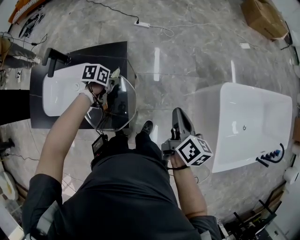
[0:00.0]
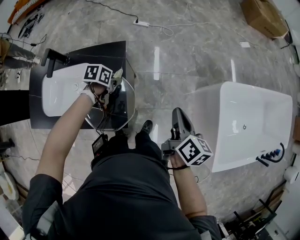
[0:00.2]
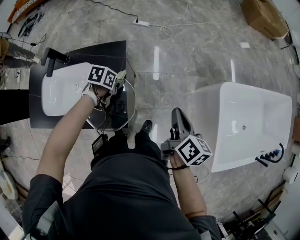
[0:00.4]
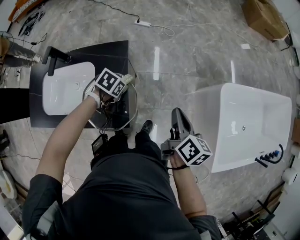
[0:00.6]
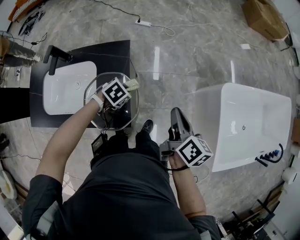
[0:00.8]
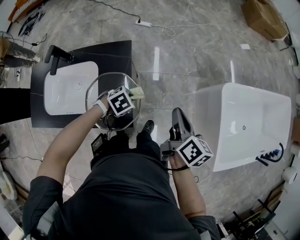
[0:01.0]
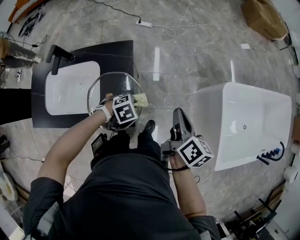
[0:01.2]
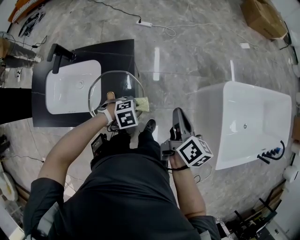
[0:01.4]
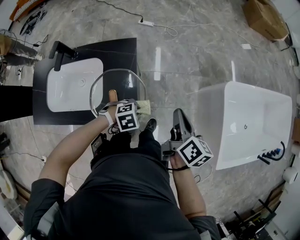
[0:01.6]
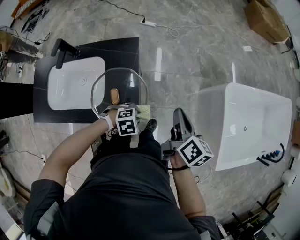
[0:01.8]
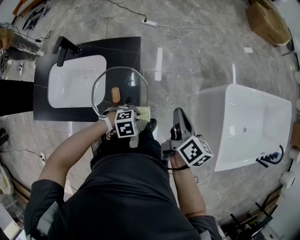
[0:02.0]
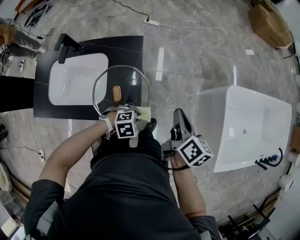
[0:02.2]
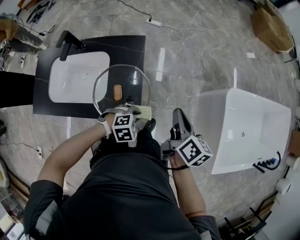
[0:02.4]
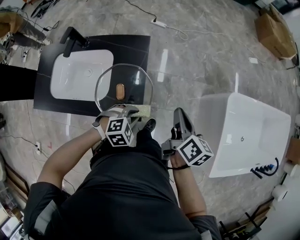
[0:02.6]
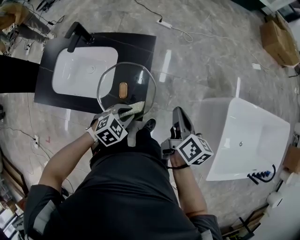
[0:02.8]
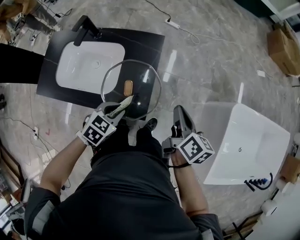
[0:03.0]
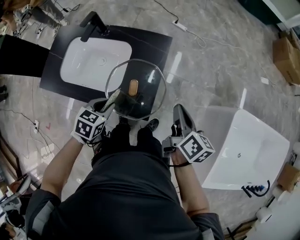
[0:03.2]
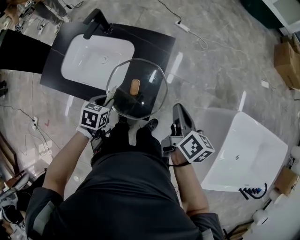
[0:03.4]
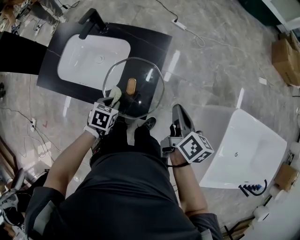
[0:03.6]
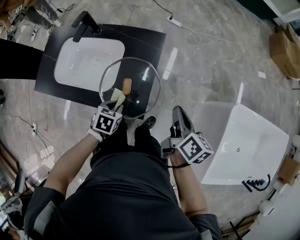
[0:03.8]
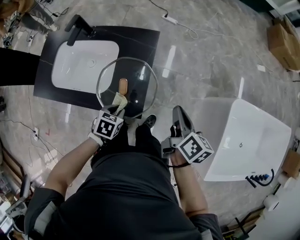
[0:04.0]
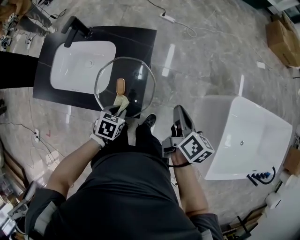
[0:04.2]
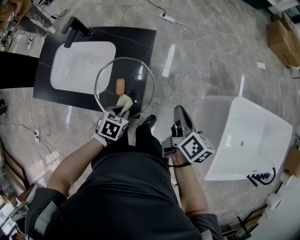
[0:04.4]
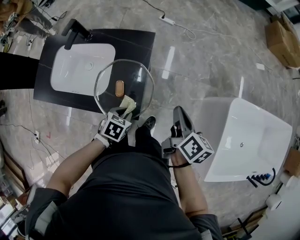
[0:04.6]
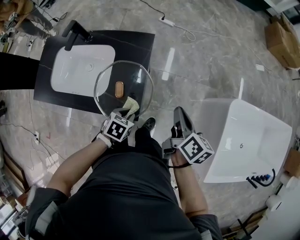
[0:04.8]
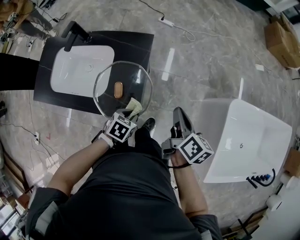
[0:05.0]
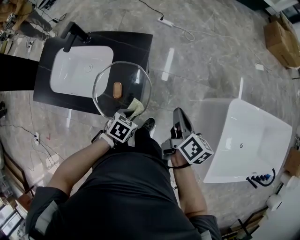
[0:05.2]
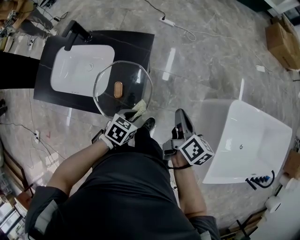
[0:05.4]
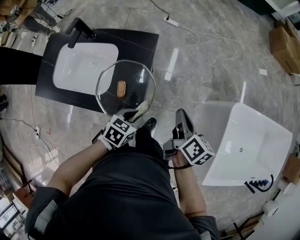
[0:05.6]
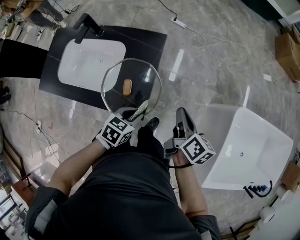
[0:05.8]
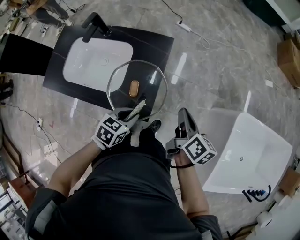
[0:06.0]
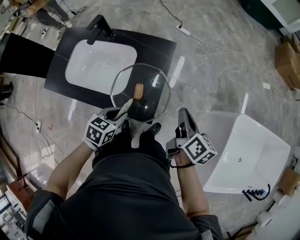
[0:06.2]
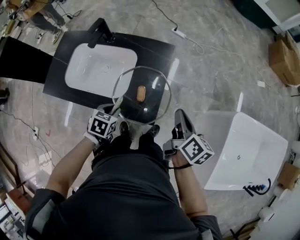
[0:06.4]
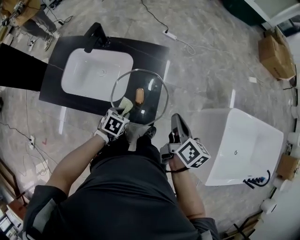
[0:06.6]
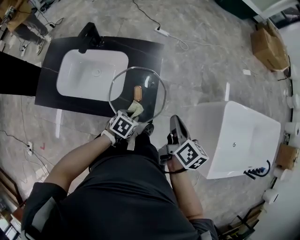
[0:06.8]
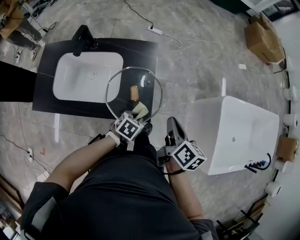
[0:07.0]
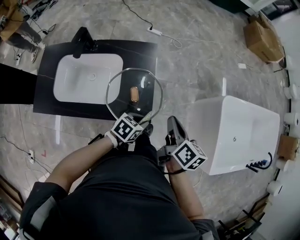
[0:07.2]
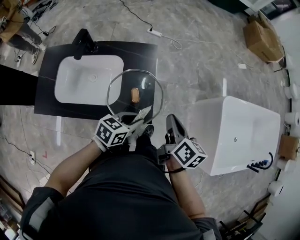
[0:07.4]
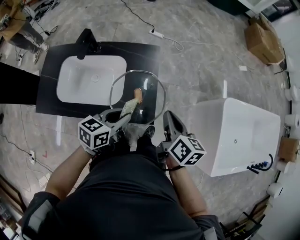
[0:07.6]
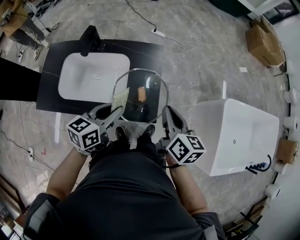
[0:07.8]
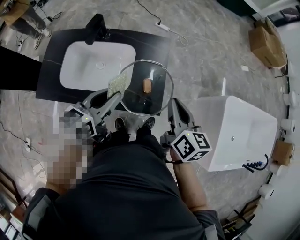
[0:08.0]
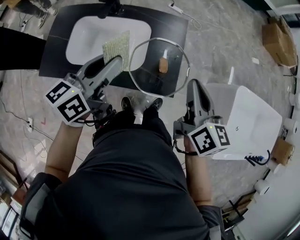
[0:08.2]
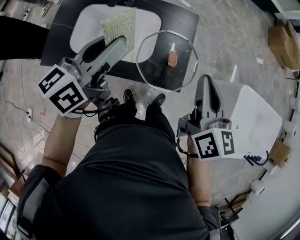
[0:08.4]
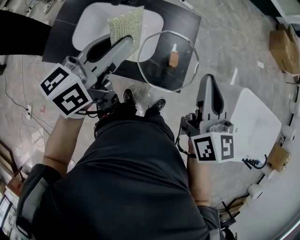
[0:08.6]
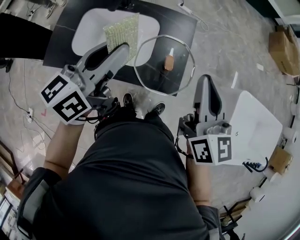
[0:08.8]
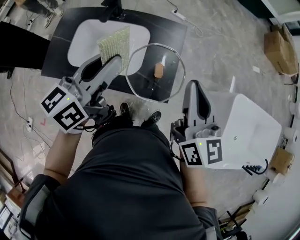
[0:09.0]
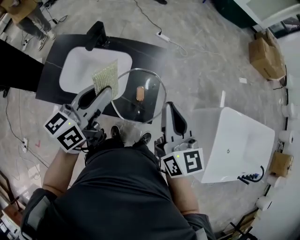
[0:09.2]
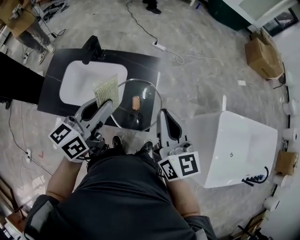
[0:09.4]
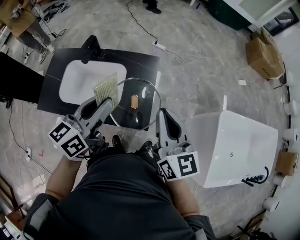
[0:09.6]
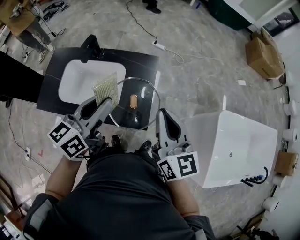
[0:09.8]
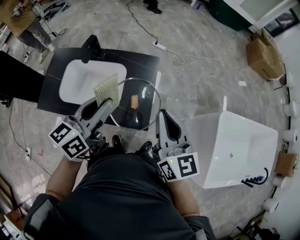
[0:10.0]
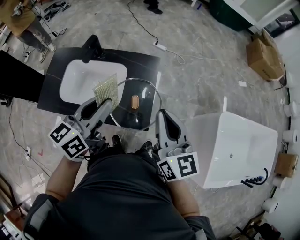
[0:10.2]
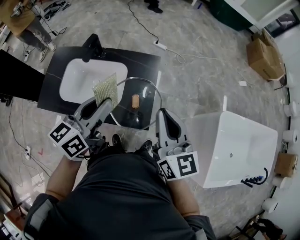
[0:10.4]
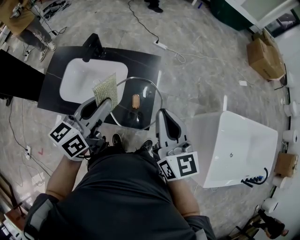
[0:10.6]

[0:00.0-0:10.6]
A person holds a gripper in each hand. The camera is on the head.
0:00.0 to 0:01.6: The left gripper shifts roughly 20 cm to the right and backward, and rolls clockwise, seen from behind, by about 70 degrees.
0:01.6 to 0:03.0: The right gripper moves some 5 cm, while the left gripper shifts by roughly 15 cm, and turns by about 50 degrees.
0:03.0 to 0:04.6: The left gripper is displaced downward by some 10 cm, and moves approximately 10 cm to the left and comes back.
0:04.6 to 0:06.0: The left gripper is displaced upward by some 5 cm.
0:06.0 to 0:07.6: The right gripper shifts by some 15 cm. Meanwhile the left gripper moves upward, some 10 cm, and rotates roughly 20 degrees.
0:07.6 to 0:09.0: The two grippers go some 20 cm upward and to the left. The right gripper rotates about 40 degrees, while the left gripper rotates roughly 30 degrees.
0:09.0 to 0:10.6: The left gripper shifts some 5 cm to the right.

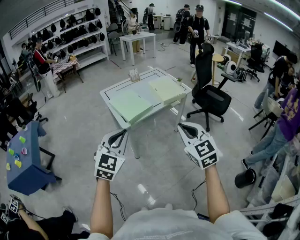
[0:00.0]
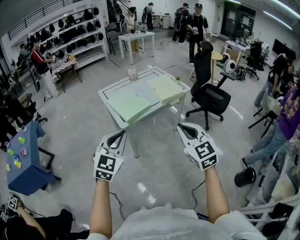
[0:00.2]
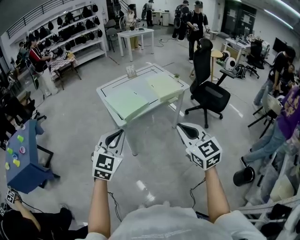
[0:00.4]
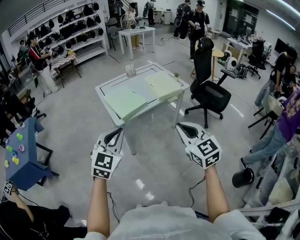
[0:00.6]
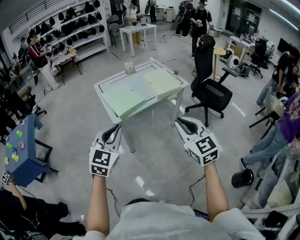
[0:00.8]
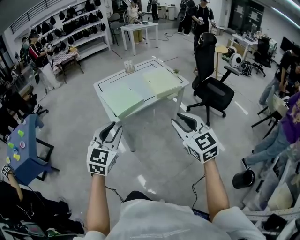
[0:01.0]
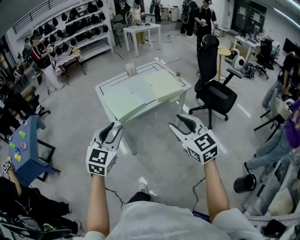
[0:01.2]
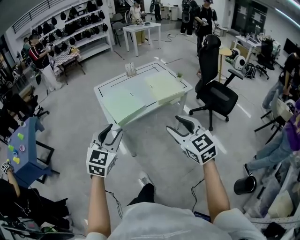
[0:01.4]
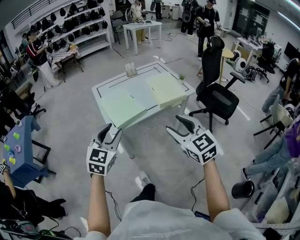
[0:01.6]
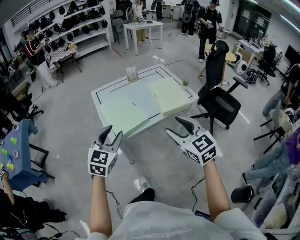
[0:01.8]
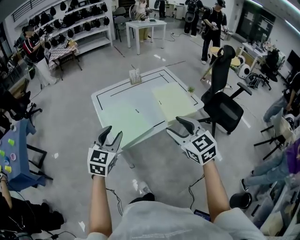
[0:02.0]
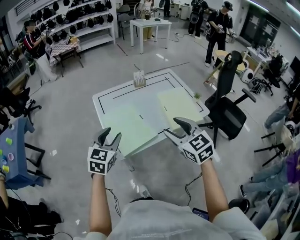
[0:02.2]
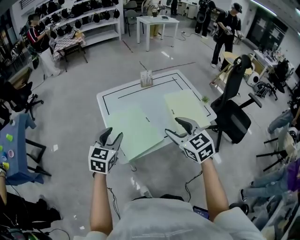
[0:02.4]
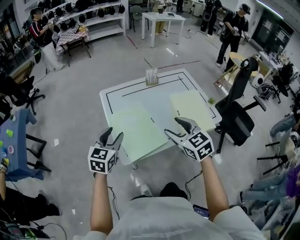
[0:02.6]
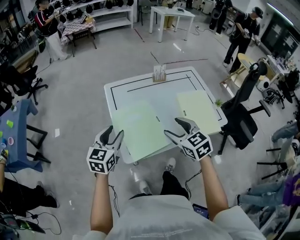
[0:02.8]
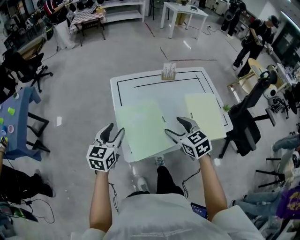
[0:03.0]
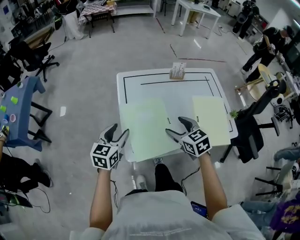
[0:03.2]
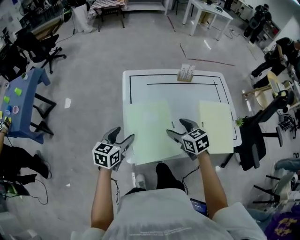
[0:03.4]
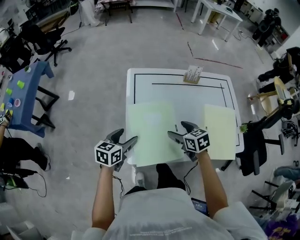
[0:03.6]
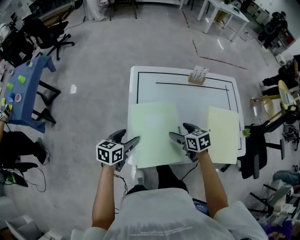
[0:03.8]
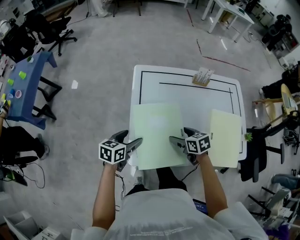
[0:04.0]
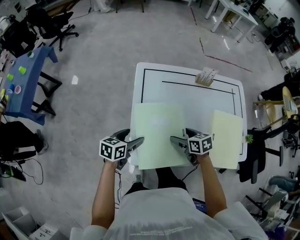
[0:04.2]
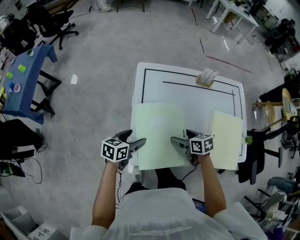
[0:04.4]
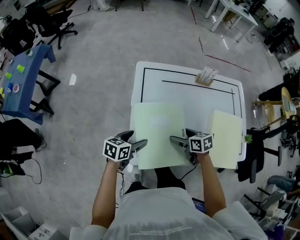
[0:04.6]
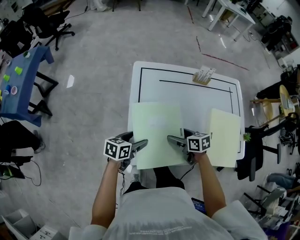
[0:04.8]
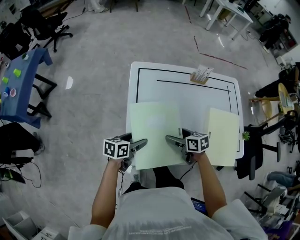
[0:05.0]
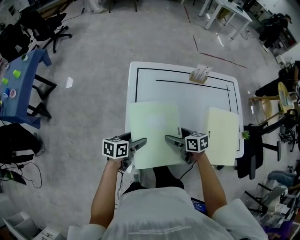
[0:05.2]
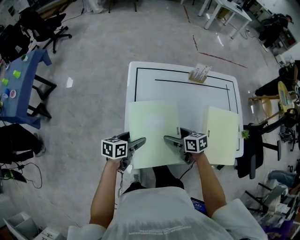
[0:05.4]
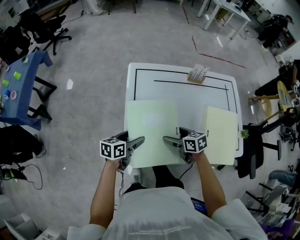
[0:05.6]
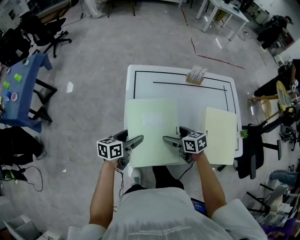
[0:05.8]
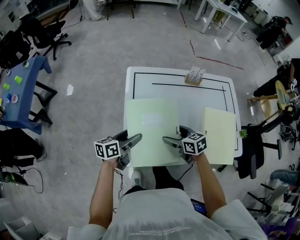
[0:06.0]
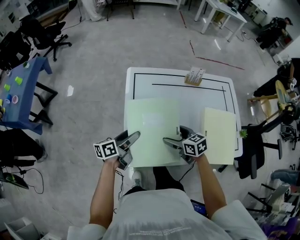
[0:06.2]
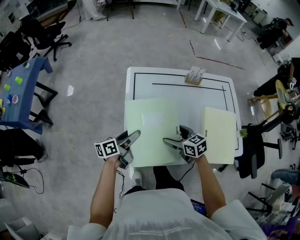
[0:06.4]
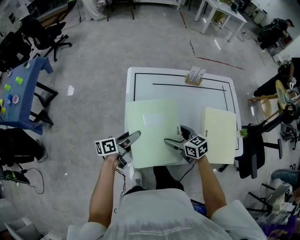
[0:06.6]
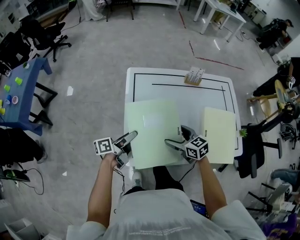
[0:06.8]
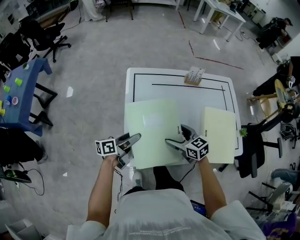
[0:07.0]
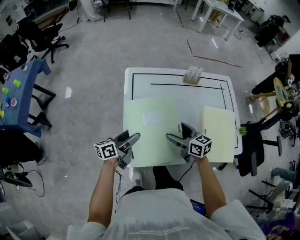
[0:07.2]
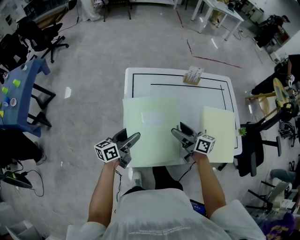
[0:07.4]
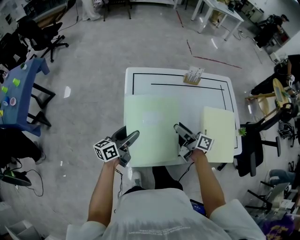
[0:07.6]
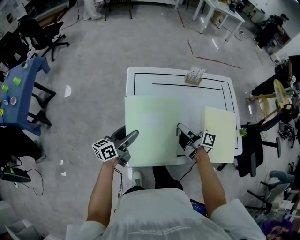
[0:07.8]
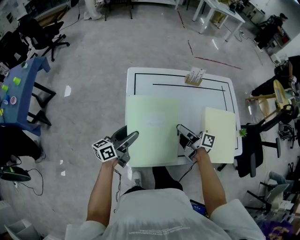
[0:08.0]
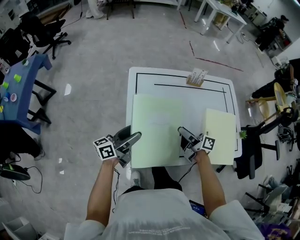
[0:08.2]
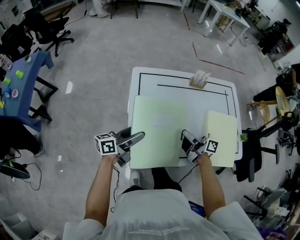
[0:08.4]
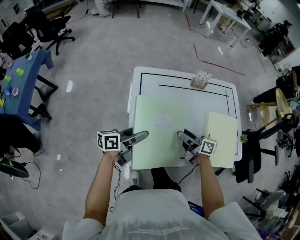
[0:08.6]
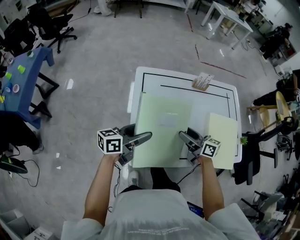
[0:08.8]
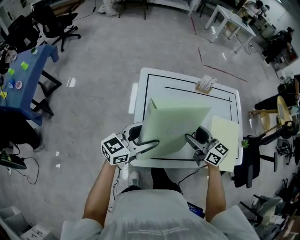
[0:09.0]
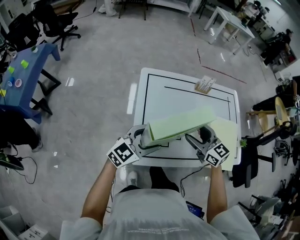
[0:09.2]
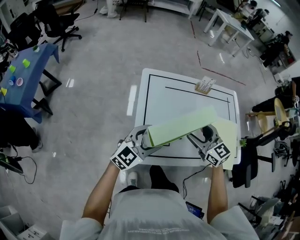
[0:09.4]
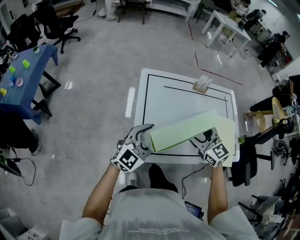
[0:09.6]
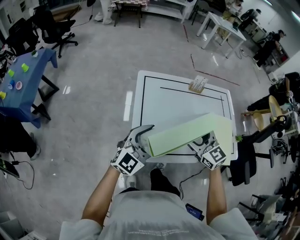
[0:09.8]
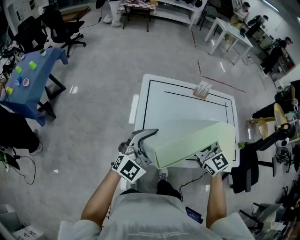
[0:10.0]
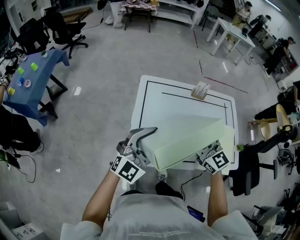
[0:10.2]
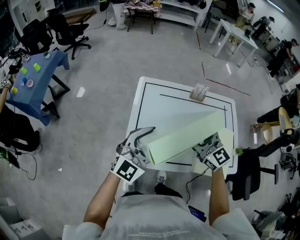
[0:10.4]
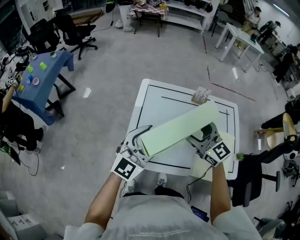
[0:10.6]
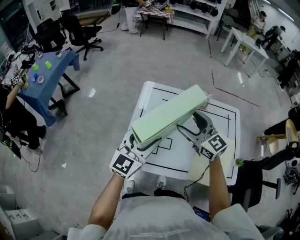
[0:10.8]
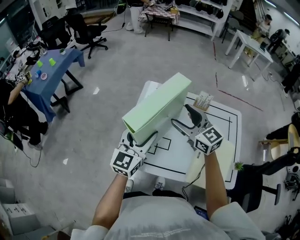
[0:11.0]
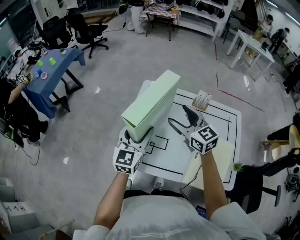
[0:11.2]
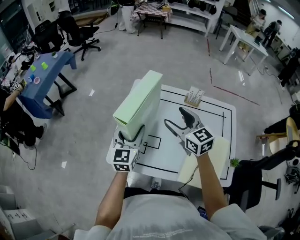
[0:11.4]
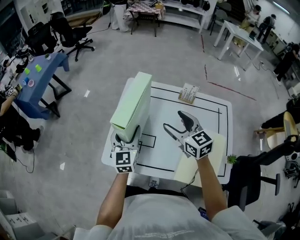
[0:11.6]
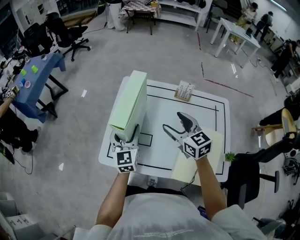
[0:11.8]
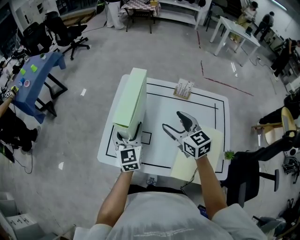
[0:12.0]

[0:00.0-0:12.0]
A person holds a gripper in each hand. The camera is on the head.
0:00.0 to 0:01.6: Both grippers travel together forward, roughly 15 cm. The right gripper opens its fingers, while the left gripper opens.
0:01.6 to 0:03.0: The right gripper shifts some 40 cm forward, and changes its angle by some 30 degrees; the left gripper heads forward and downward, covering approximately 35 cm, and rotates approximately 30 degrees.
0:03.0 to 0:04.4: The right gripper shifts roughly 20 cm downward and forward, and turns by roughly 40 degrees; the left gripper is displaced downward by approximately 15 cm, turns by about 30 degrees, and opens its fingers.
0:04.4 to 0:06.0: There are only small adjustments of the grippers.
0:06.0 to 0:07.6: The right gripper is displaced upward by some 5 cm, and angles its fingers upward, by roughly 30 degrees.
0:07.6 to 0:09.0: The left gripper moves upward, approximately 10 cm, and changes its angle by approximately 30 degrees, while the right gripper shifts some 5 cm upward, and twists approximately 40 degrees counterclockwise, seen from behind.
0:09.0 to 0:10.4: The left gripper heads upward and to the right, covering approximately 10 cm, and rotates around the line of its fingers by some 40 degrees, clockwise from behind, while the right gripper moves upward, about 10 cm, and swivels roughly 30 degrees.
0:10.4 to 0:12.0: The right gripper moves some 10 cm, while the left gripper heads downward, covering about 10 cm, and rotates some 50 degrees.

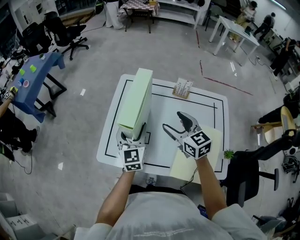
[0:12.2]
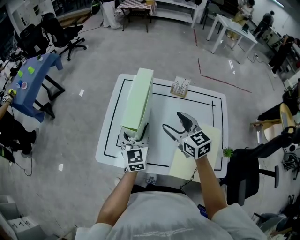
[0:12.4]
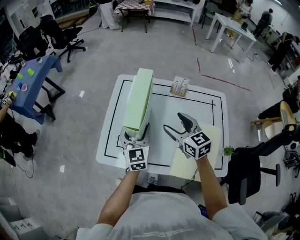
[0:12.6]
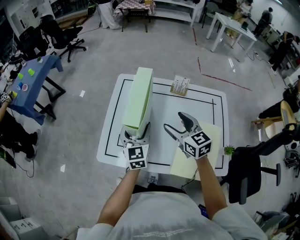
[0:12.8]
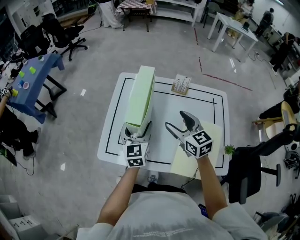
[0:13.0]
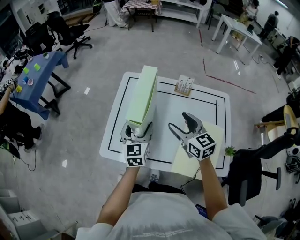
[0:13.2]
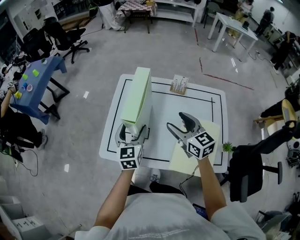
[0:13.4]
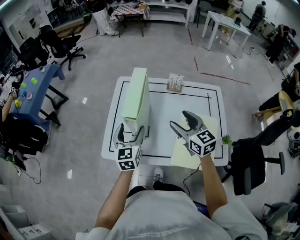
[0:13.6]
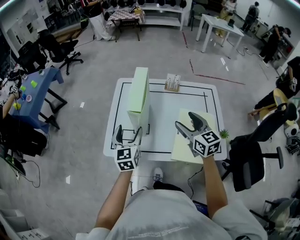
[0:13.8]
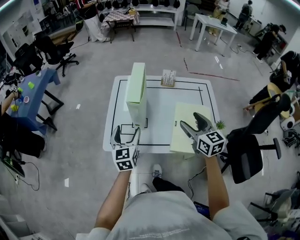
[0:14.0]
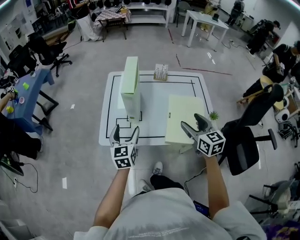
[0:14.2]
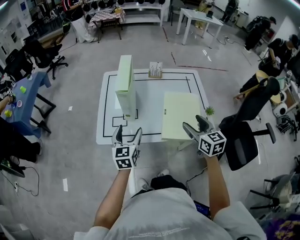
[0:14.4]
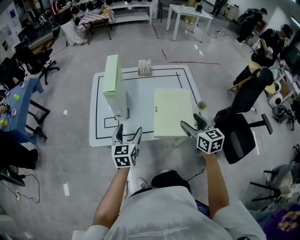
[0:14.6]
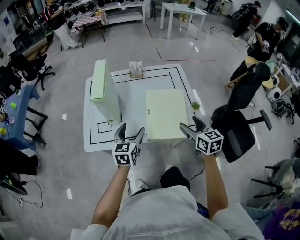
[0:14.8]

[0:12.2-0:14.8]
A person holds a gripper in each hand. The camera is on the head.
0:12.2 to 0:13.4: The grippers make only small movements.
0:13.4 to 0:14.8: The left gripper moves some 20 cm, and swivels approximately 30 degrees; the right gripper shifts by approximately 30 cm, and turns by about 30 degrees.
